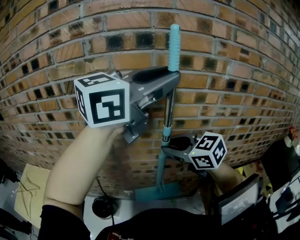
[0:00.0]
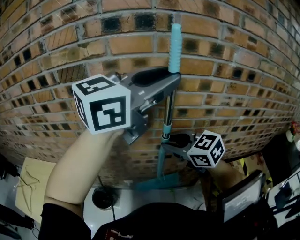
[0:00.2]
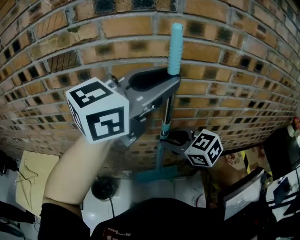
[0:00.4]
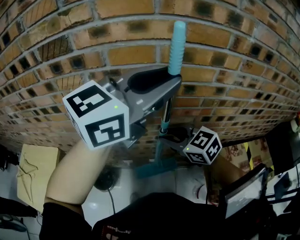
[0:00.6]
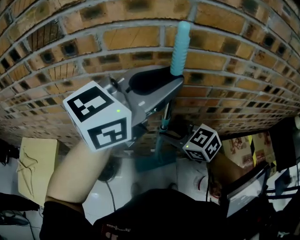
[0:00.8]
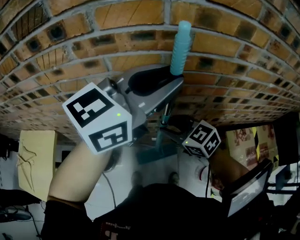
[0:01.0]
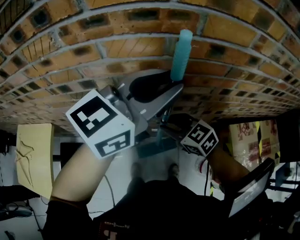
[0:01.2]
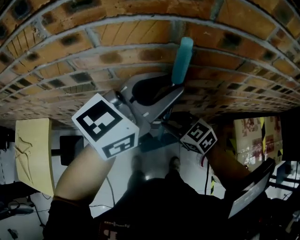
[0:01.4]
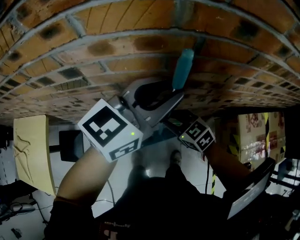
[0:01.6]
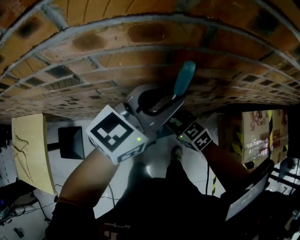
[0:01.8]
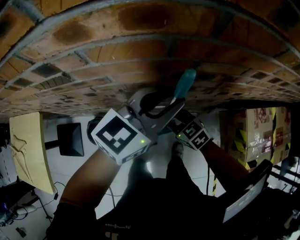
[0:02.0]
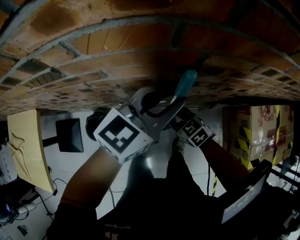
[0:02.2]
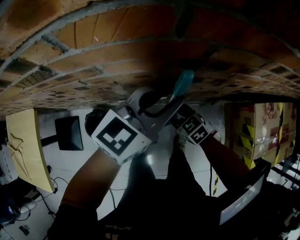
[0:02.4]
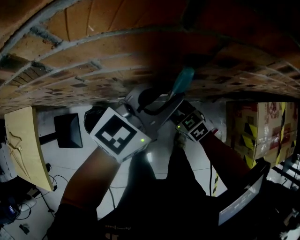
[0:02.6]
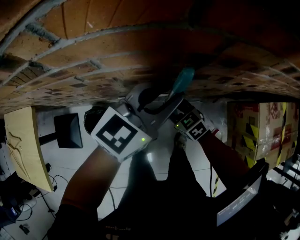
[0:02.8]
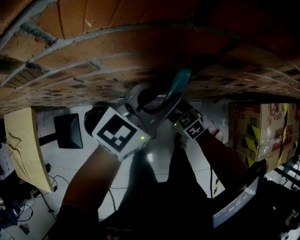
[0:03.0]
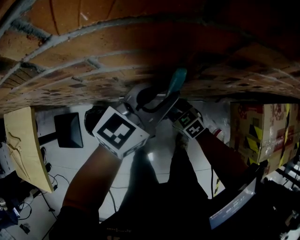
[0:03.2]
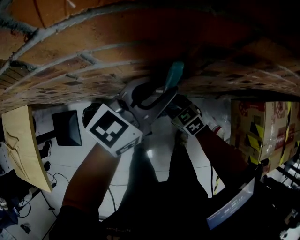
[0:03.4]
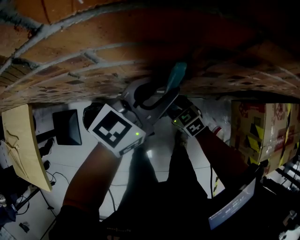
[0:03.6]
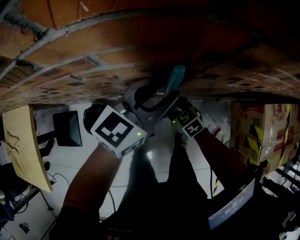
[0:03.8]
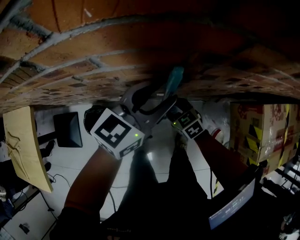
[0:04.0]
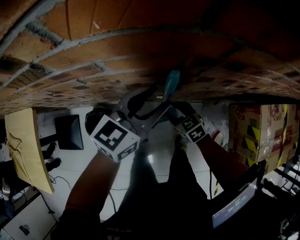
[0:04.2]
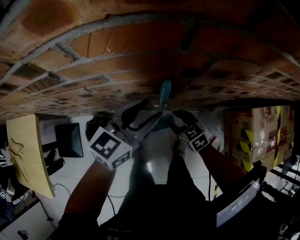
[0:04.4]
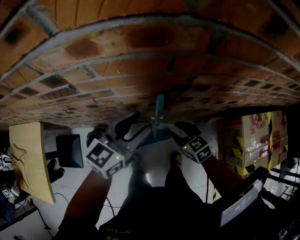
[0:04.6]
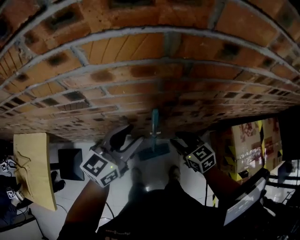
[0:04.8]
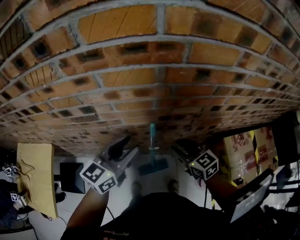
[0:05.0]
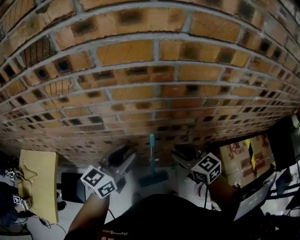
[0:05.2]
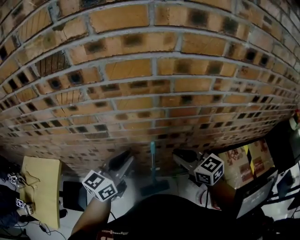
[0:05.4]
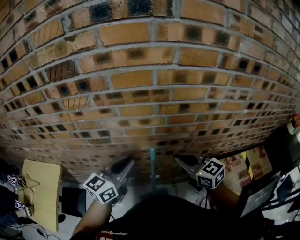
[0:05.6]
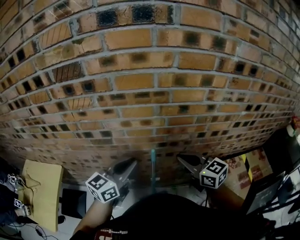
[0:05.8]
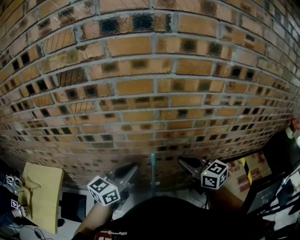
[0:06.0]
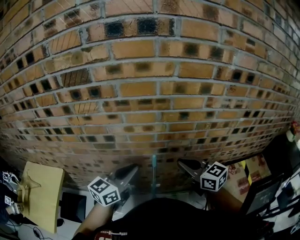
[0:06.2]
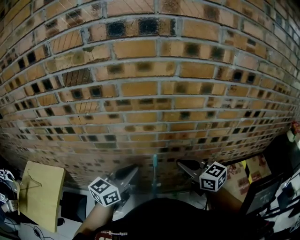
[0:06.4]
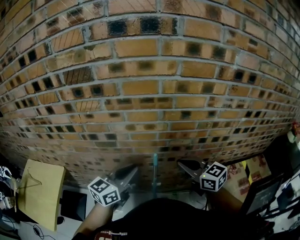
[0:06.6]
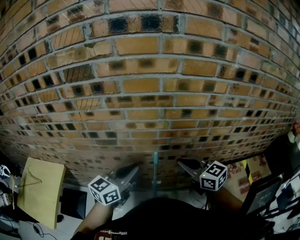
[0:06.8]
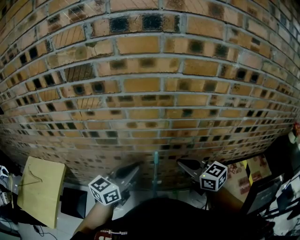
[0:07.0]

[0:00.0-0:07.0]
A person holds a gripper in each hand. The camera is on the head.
0:00.0 to 0:01.4: Both grippers move downward, about 35 cm.
0:01.4 to 0:02.8: Both grippers move downward, about 25 cm.
0:02.8 to 0:04.2: The left gripper travels downward by approximately 5 cm, and opens up.
0:04.2 to 0:05.6: The left gripper is displaced upward by approximately 25 cm, and closes up. Meanwhile the right gripper shifts approximately 50 cm upward, angles its fingers upward, by some 30 degrees, and closes its fingers.
0:05.6 to 0:07.0: There are only small adjustments of the grippers.

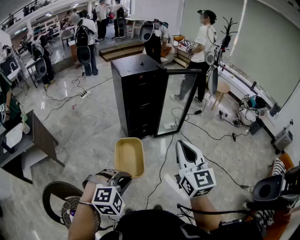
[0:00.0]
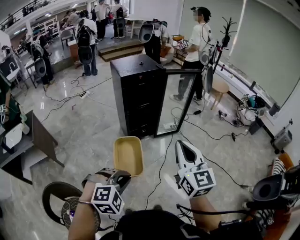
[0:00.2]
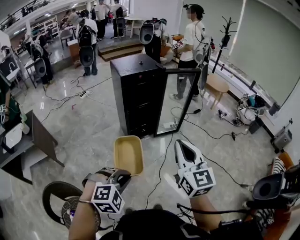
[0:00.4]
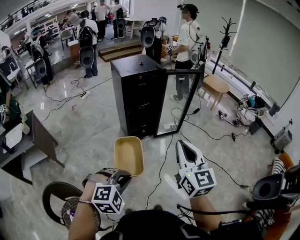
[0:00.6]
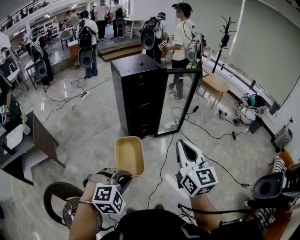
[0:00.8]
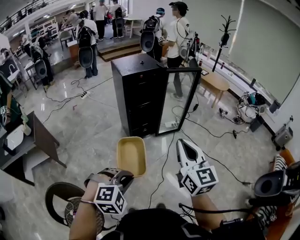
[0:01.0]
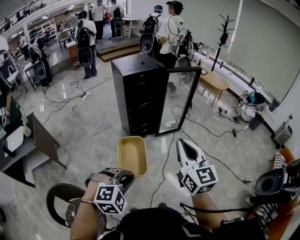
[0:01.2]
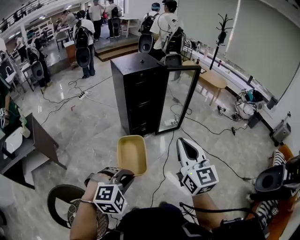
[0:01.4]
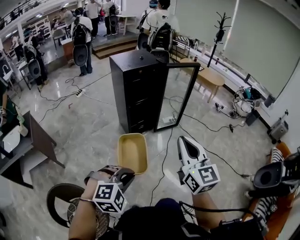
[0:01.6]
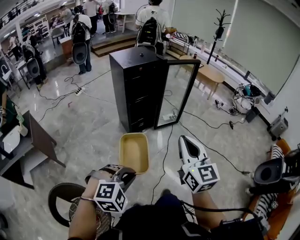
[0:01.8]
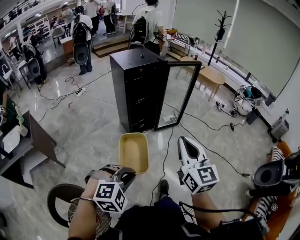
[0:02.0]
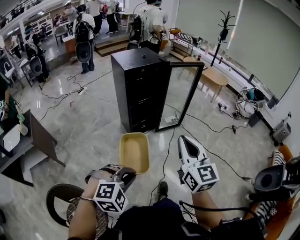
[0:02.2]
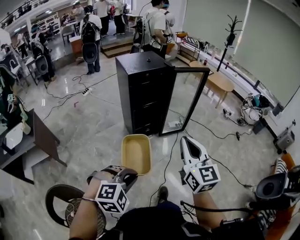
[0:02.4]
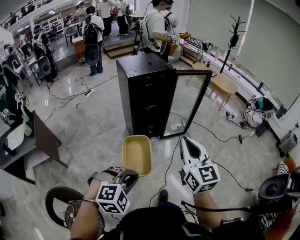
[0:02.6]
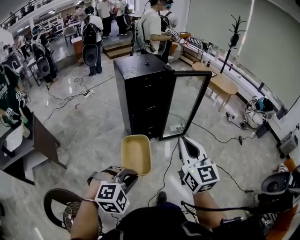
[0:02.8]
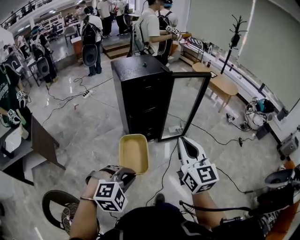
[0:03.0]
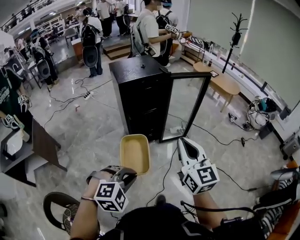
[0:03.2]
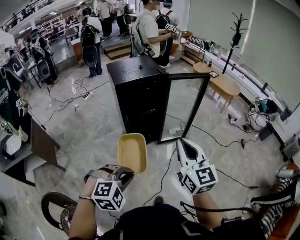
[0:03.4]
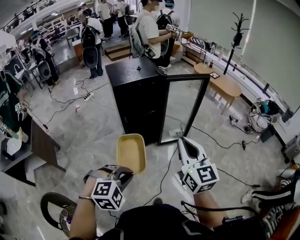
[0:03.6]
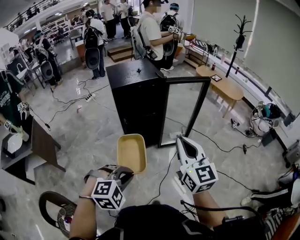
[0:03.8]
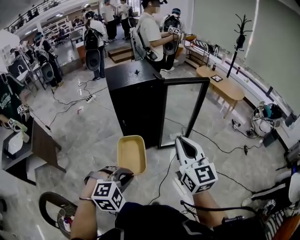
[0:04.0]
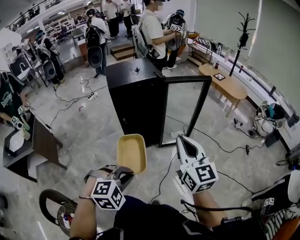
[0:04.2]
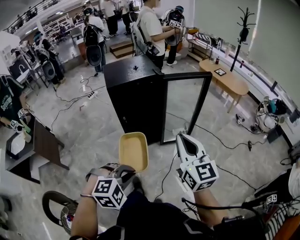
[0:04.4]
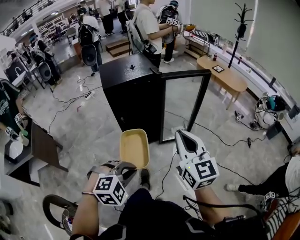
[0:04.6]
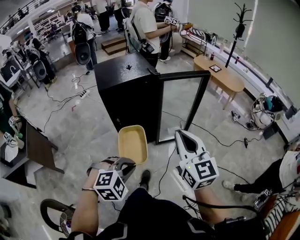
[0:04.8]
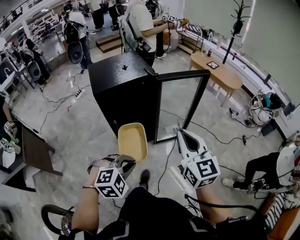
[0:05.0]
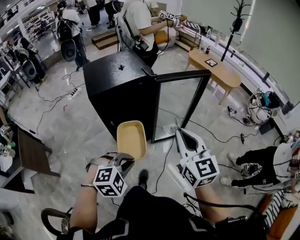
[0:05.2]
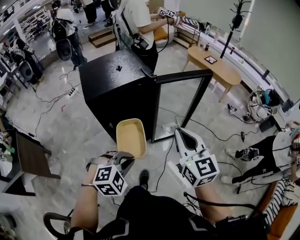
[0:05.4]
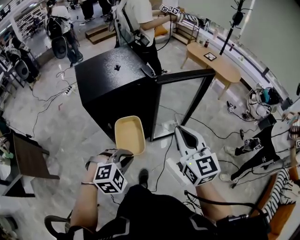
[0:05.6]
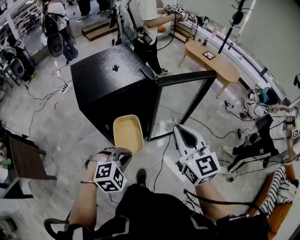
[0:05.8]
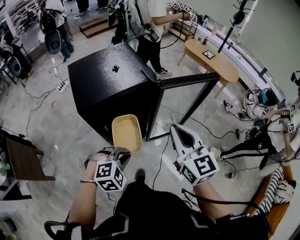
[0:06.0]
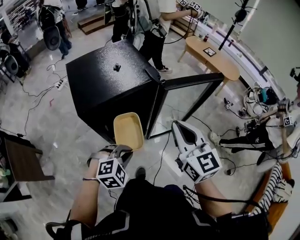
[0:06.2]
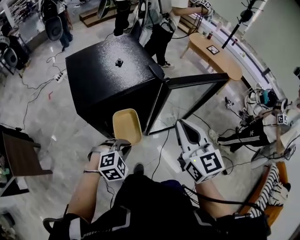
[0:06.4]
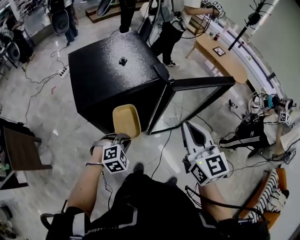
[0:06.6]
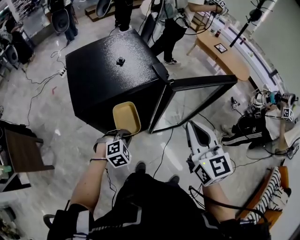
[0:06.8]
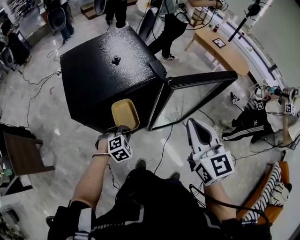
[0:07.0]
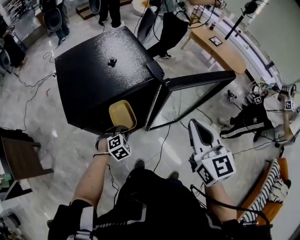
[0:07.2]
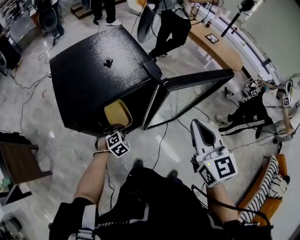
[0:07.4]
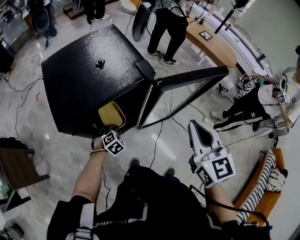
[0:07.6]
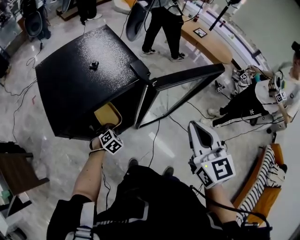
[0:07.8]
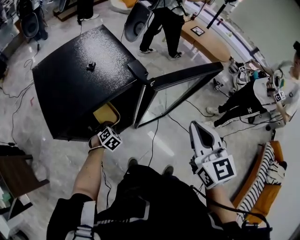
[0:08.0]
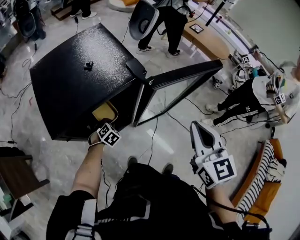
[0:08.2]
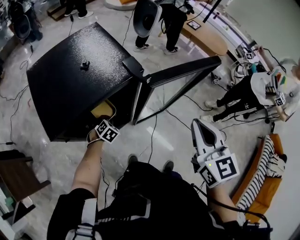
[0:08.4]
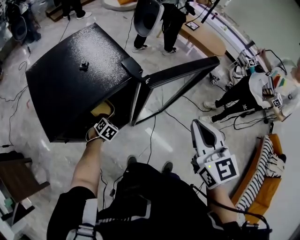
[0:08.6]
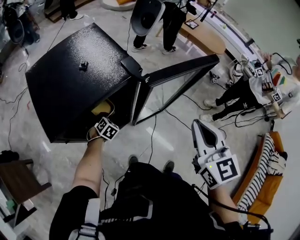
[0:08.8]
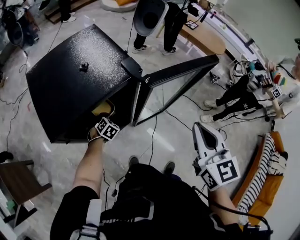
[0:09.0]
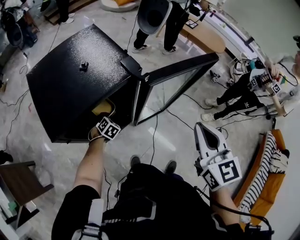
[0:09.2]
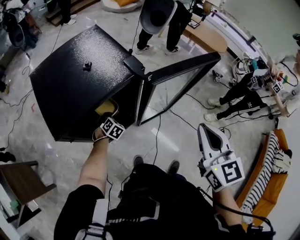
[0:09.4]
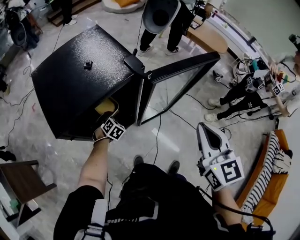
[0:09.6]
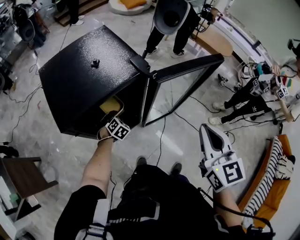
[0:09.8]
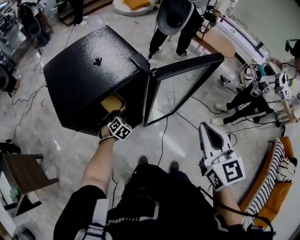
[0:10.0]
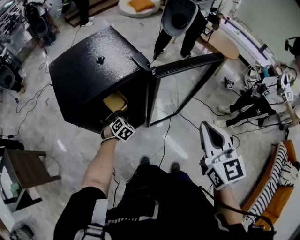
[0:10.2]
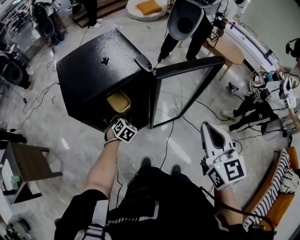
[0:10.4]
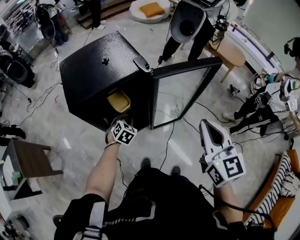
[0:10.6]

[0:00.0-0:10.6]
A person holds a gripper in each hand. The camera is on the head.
0:00.0 to 0:01.6: The right gripper shifts by roughly 5 cm. Meanwhile the left gripper ends up some 5 cm from where it was.
0:01.6 to 0:03.0: Both grippers travel together forward, some 15 cm.
0:03.0 to 0:04.6: The grippers both shift forward and to the right by roughly 15 cm.
0:04.6 to 0:06.0: Both grippers move forward, some 25 cm.
0:06.0 to 0:07.6: The left gripper shifts some 30 cm downward and forward, and swivels roughly 20 degrees; the right gripper heads forward, covering about 5 cm.
0:07.6 to 0:09.0: The left gripper travels forward by some 10 cm.
0:09.0 to 0:10.6: The right gripper moves roughly 5 cm. The left gripper travels upward and backward by approximately 15 cm.

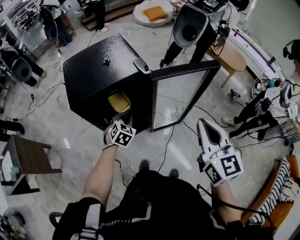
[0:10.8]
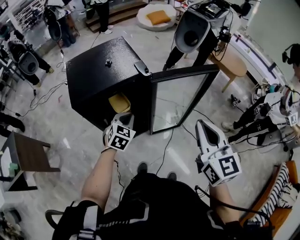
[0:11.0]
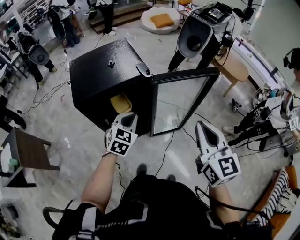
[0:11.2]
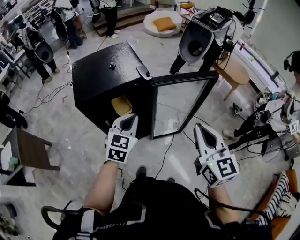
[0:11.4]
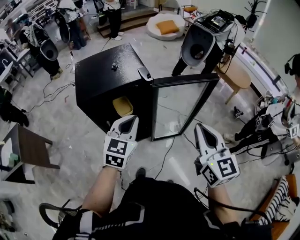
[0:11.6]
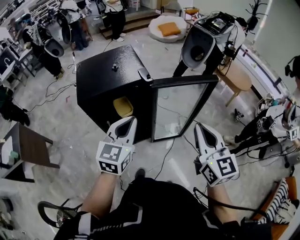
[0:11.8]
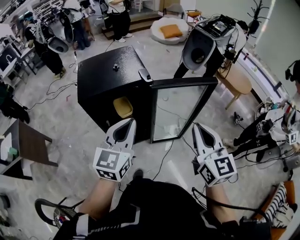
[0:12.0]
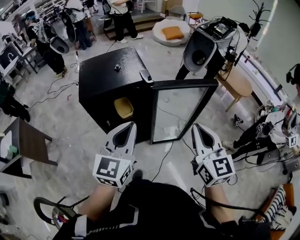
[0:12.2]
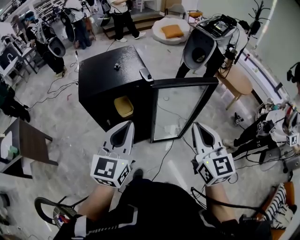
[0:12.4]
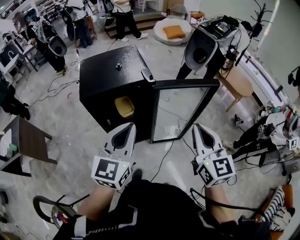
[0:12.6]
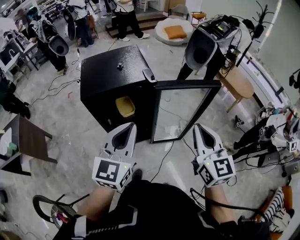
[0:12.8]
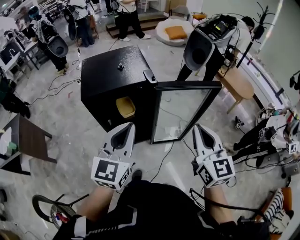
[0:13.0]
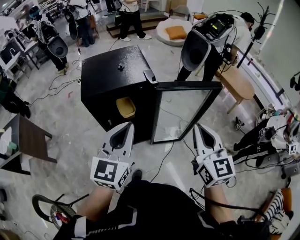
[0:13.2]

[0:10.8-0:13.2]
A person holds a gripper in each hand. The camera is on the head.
0:10.8 to 0:12.0: The left gripper travels upward and backward by roughly 30 cm, and tilts its fingers approximately 40 degrees upward.
0:12.0 to 0:13.2: The grippers stay close to where they were, moving slightly.

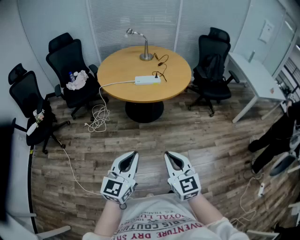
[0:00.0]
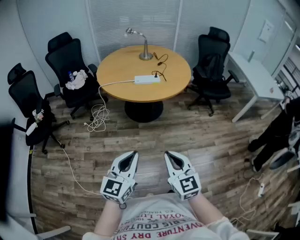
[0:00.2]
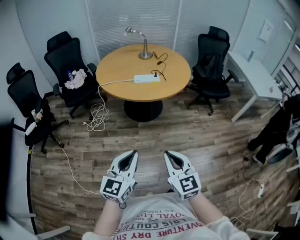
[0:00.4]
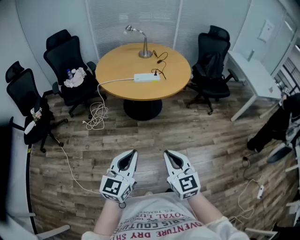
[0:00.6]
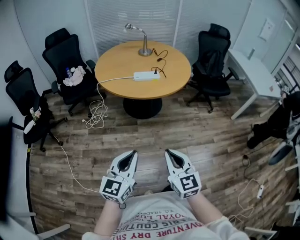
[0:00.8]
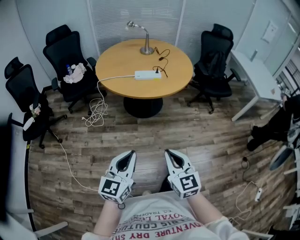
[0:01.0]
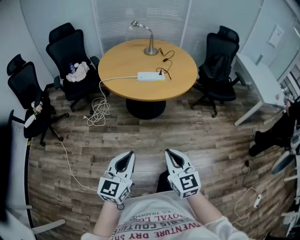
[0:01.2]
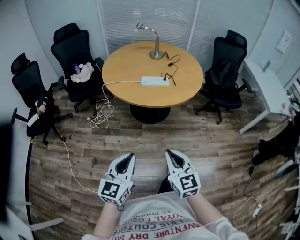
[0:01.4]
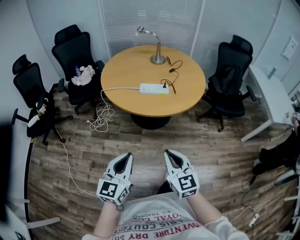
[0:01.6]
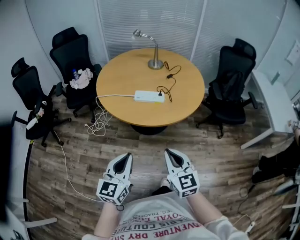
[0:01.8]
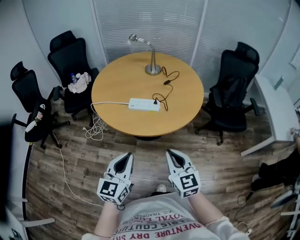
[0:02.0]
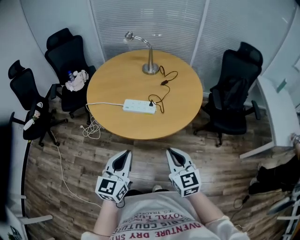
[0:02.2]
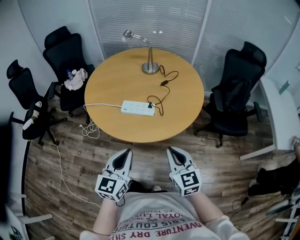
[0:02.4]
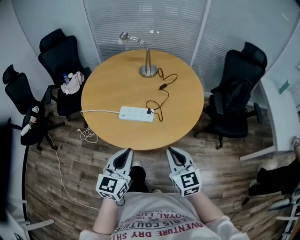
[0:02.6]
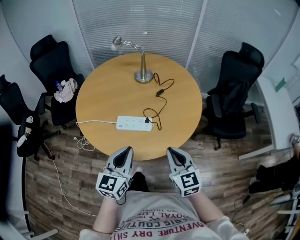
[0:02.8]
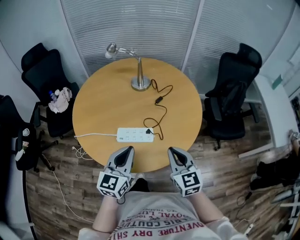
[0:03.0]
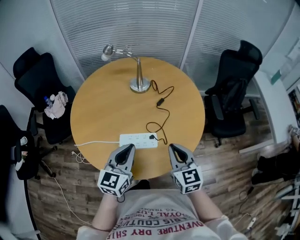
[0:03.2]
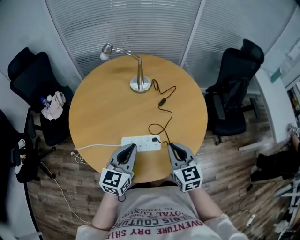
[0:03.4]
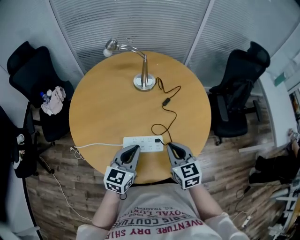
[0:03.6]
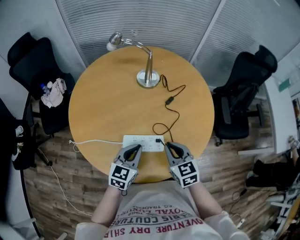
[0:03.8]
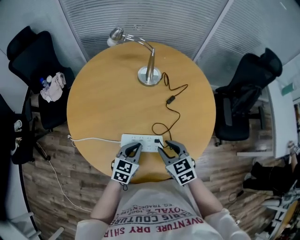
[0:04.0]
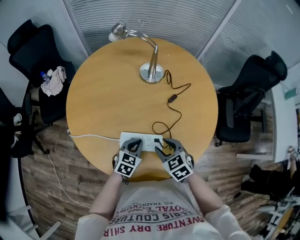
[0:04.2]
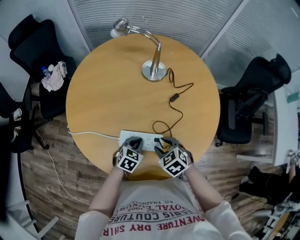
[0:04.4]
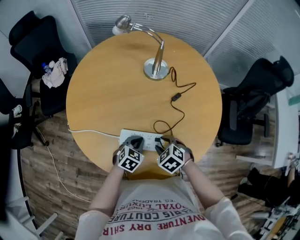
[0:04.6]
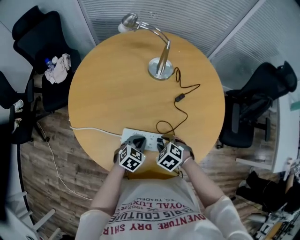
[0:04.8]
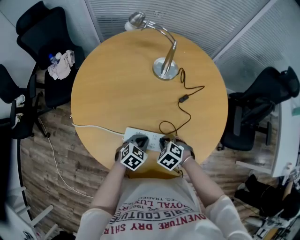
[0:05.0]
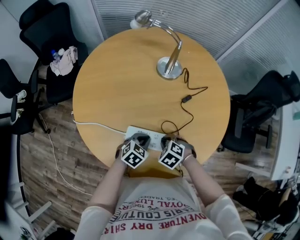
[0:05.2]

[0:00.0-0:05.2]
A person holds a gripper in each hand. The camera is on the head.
0:00.0 to 0:01.8: The grippers both shift forward by approximately 25 cm.
0:01.8 to 0:03.4: Both grippers travel together forward, approximately 40 cm.
0:03.4 to 0:05.2: The two grippers go about 25 cm downward. The right gripper angles its fingers downward, by approximately 50 degrees, and opens and closes again. Meanwhile the left gripper angles its fingers downward, by some 40 degrees.
